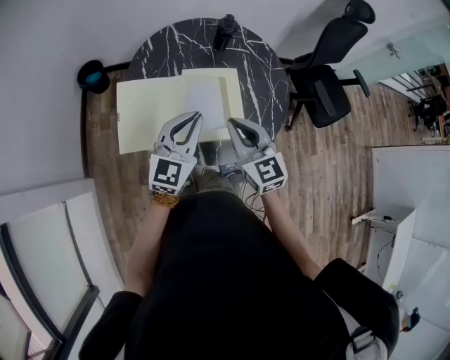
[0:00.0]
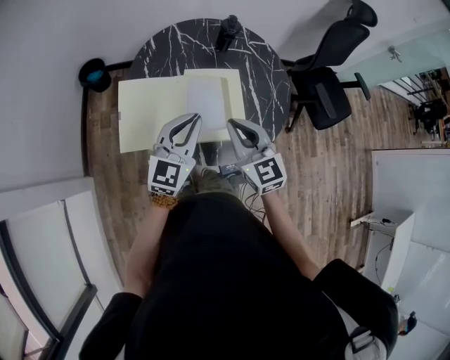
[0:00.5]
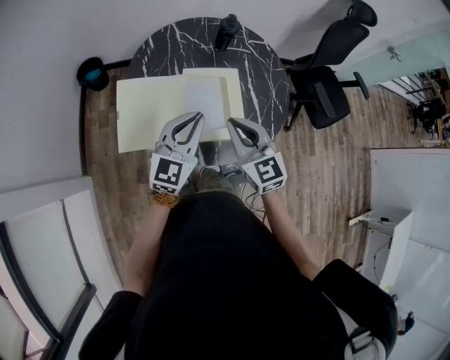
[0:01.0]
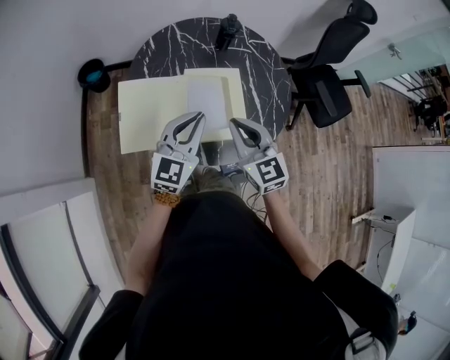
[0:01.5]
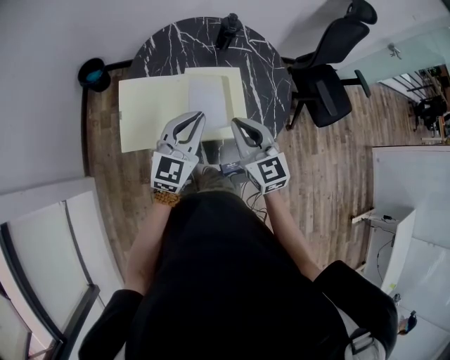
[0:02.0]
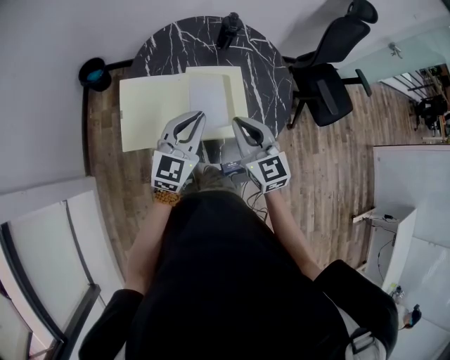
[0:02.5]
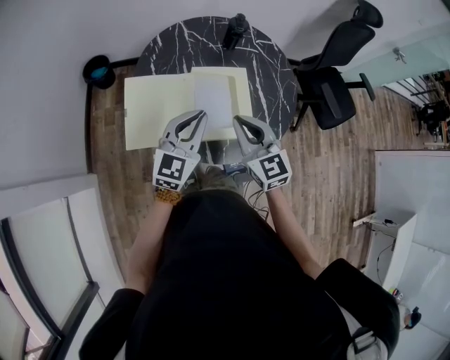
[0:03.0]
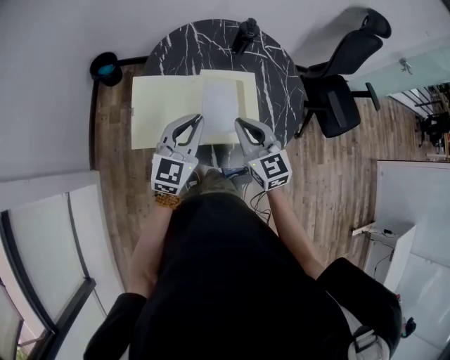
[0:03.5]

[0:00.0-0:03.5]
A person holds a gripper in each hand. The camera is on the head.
0:00.0 to 0:02.0: Neither gripper changes place.
0:02.0 to 0:03.5: There are only small adjustments of the grippers.

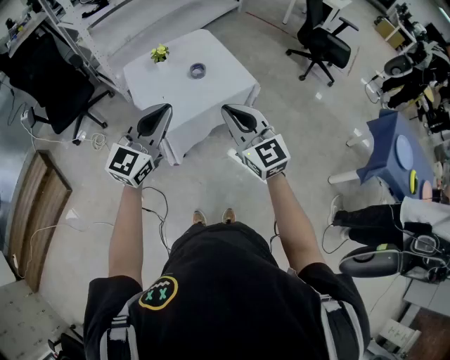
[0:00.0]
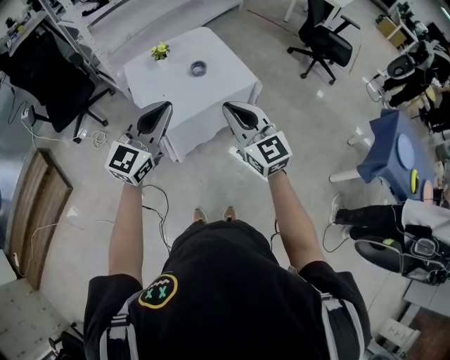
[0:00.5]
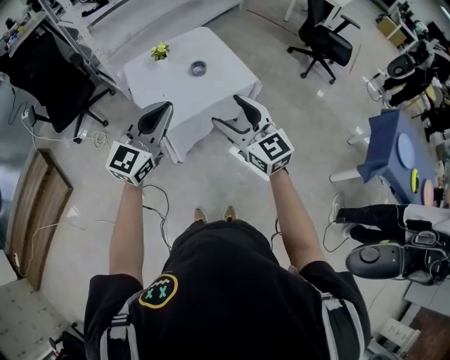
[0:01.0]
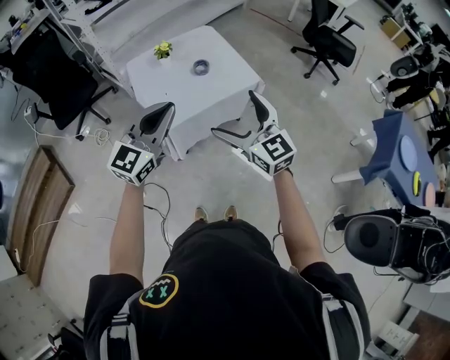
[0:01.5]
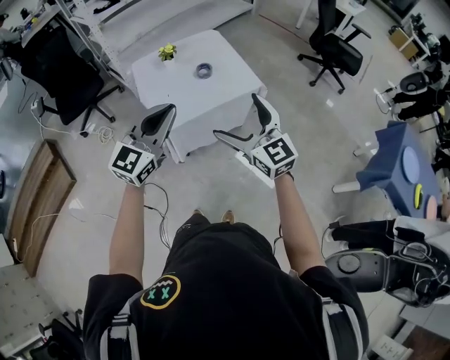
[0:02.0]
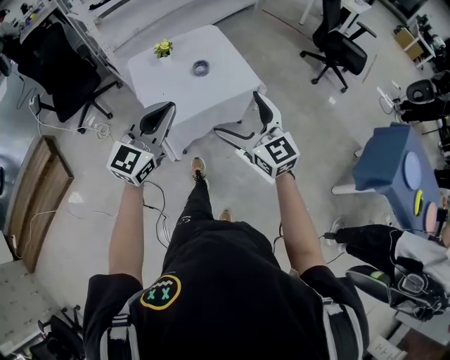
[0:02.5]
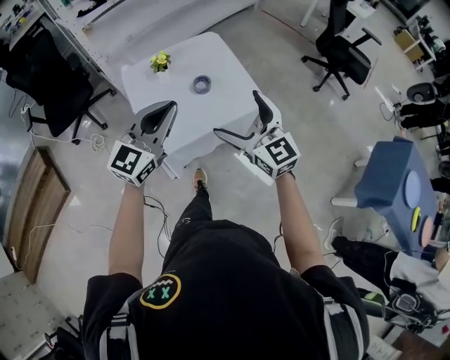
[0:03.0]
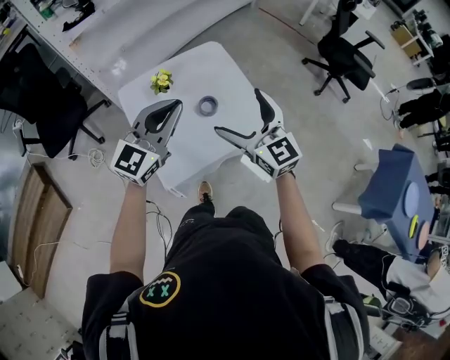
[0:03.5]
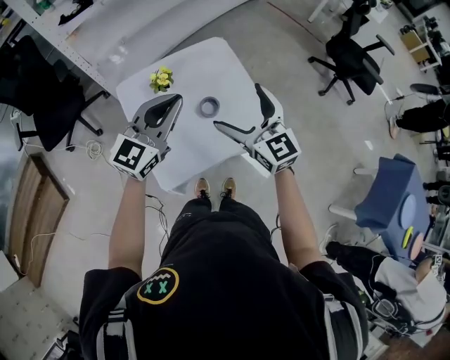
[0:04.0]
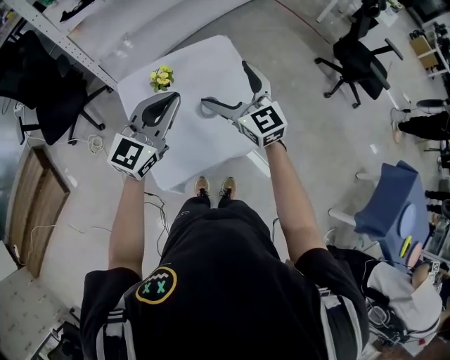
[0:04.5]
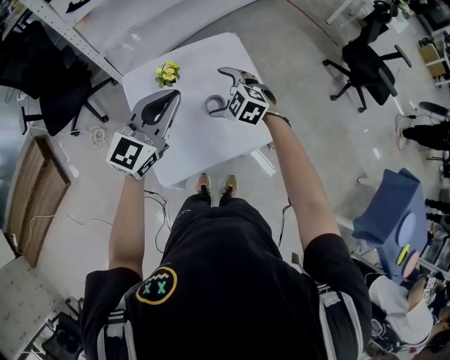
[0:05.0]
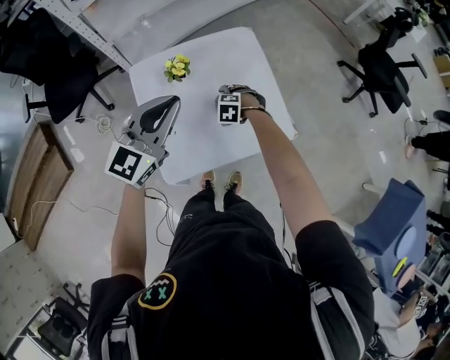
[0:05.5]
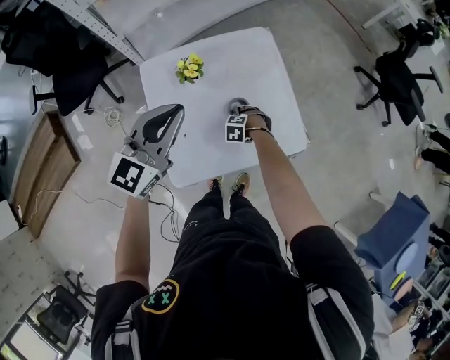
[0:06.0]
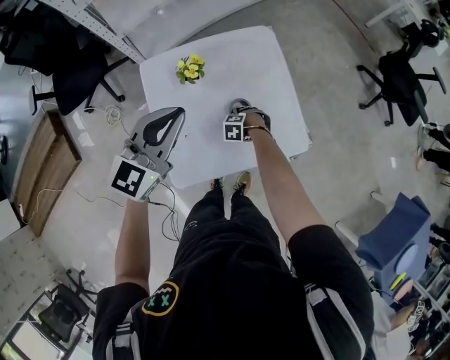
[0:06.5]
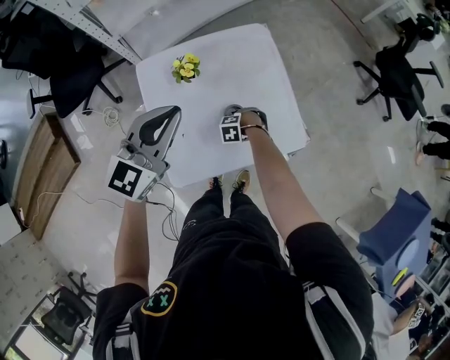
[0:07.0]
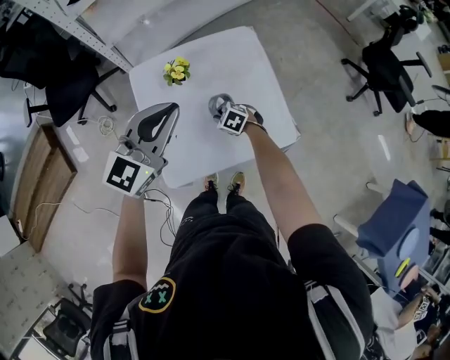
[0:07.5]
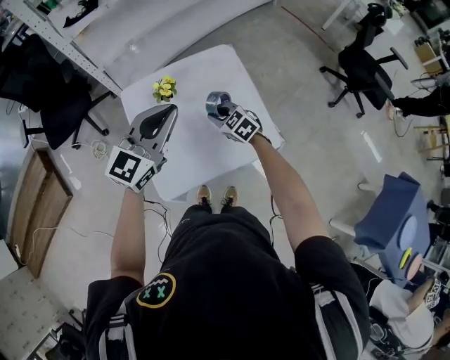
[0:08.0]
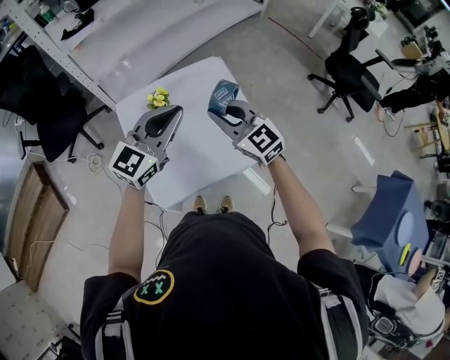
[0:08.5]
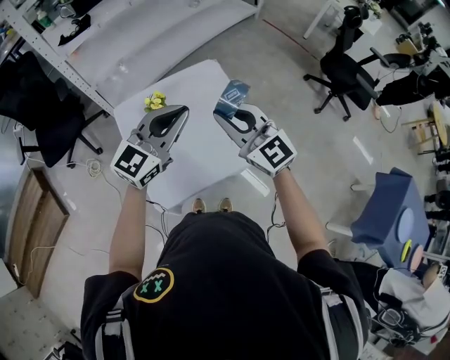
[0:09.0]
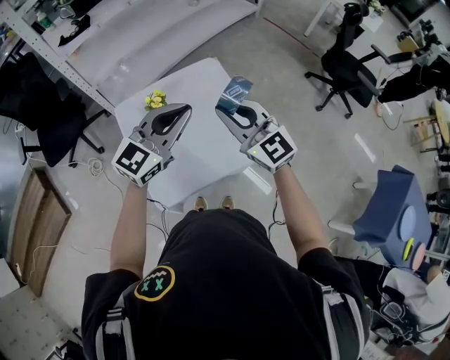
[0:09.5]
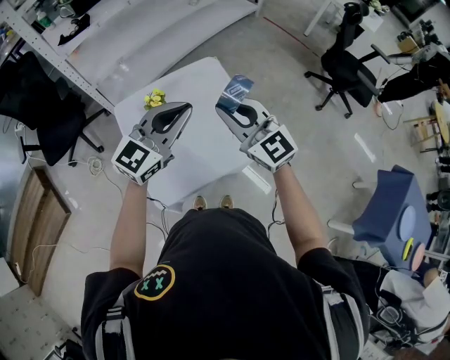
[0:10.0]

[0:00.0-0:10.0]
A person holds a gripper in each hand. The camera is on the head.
0:00.0 to 0:02.0: The right gripper opens up.
0:02.0 to 0:04.0: Both grippers are carried forward, about 40 cm.
0:04.0 to 0:06.0: The left gripper moves roughly 10 cm, while the right gripper goes roughly 40 cm downward, and tips its fingers downward by about 80 degrees.
0:06.0 to 0:08.0: The right gripper is displaced upward by approximately 20 cm, tips its fingers upward by approximately 40 degrees, and closes its fingers. The left gripper moves approximately 5 cm.
0:08.0 to 0:10.0: The right gripper goes approximately 30 cm upward, and tips its fingers upward by some 40 degrees. The left gripper is displaced to the right by about 5 cm.

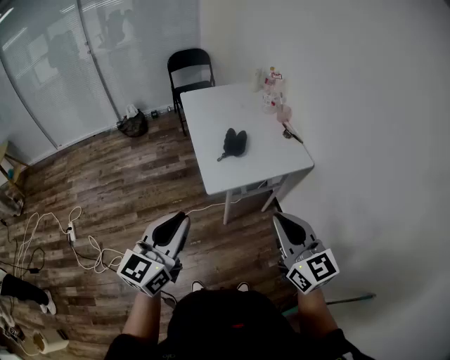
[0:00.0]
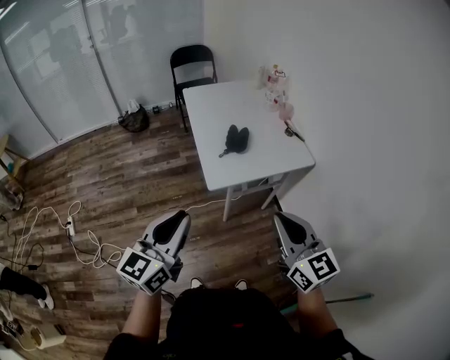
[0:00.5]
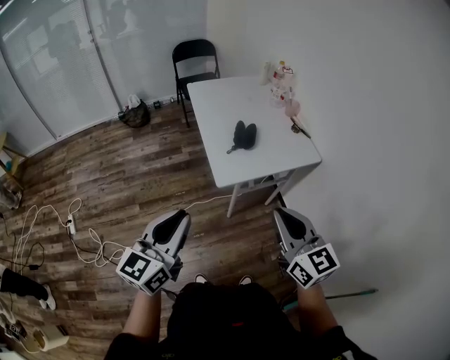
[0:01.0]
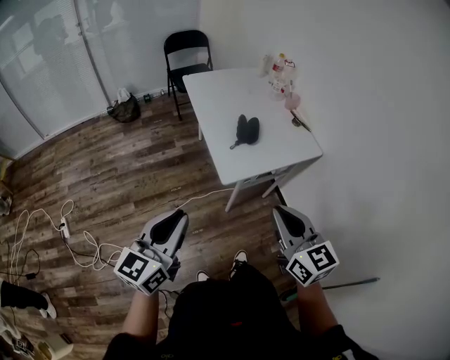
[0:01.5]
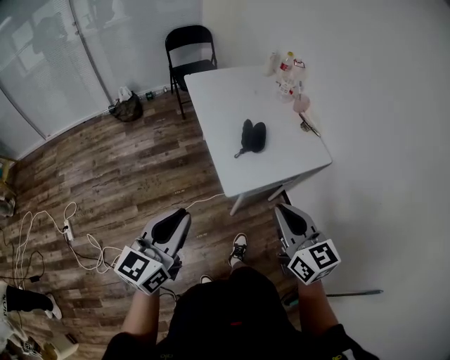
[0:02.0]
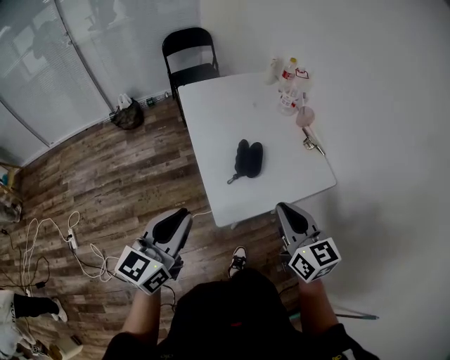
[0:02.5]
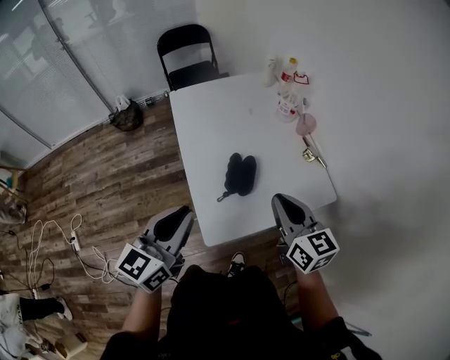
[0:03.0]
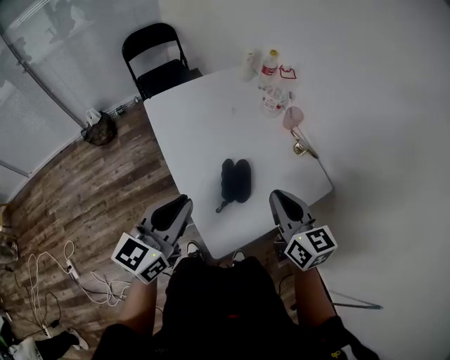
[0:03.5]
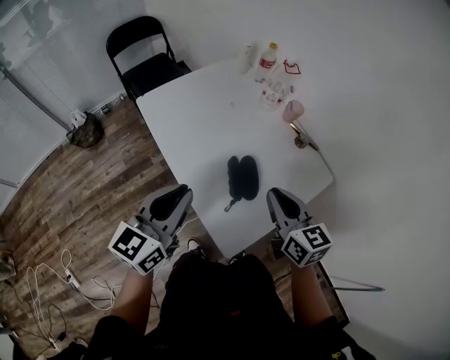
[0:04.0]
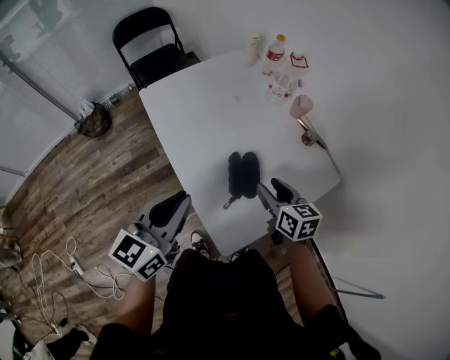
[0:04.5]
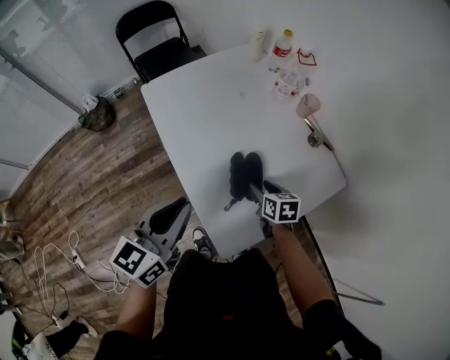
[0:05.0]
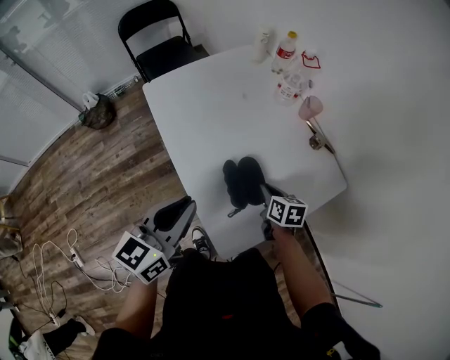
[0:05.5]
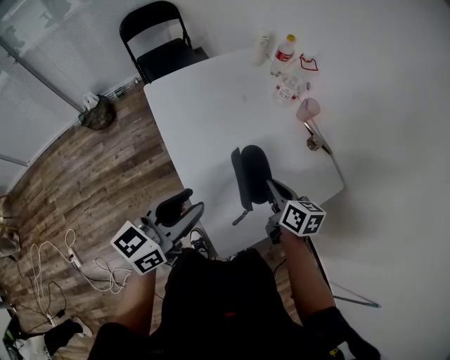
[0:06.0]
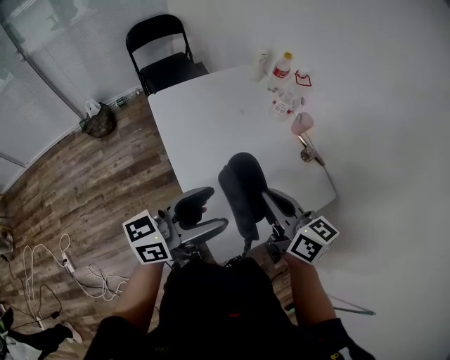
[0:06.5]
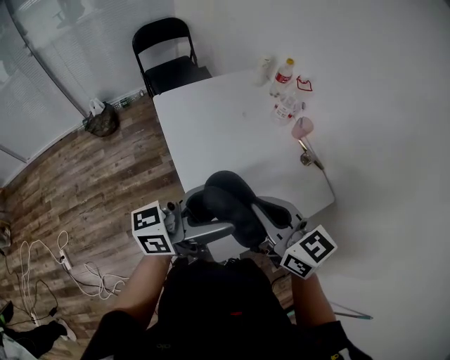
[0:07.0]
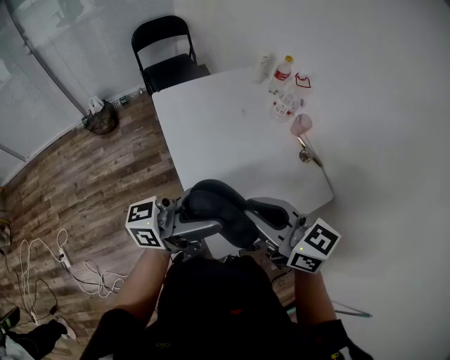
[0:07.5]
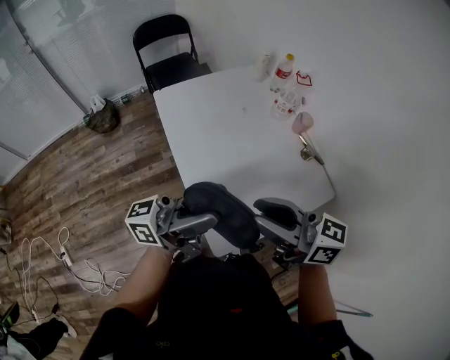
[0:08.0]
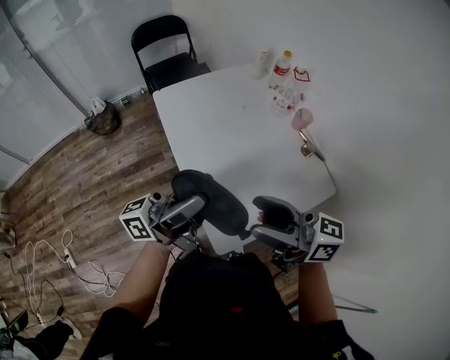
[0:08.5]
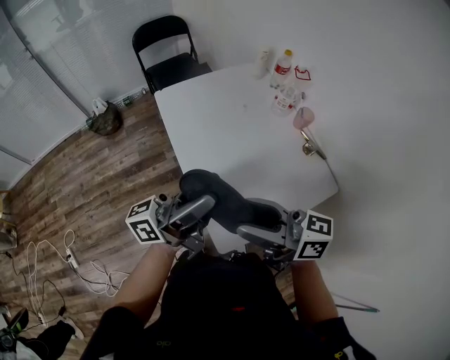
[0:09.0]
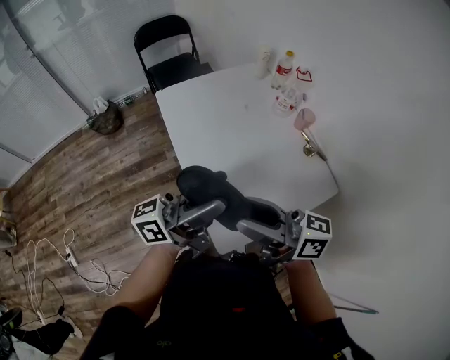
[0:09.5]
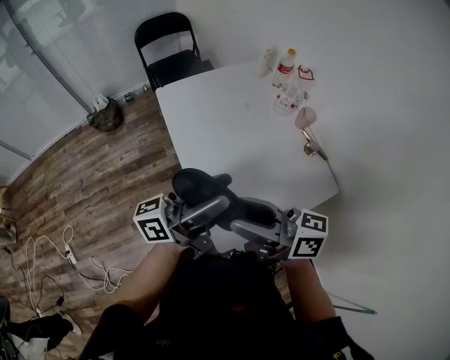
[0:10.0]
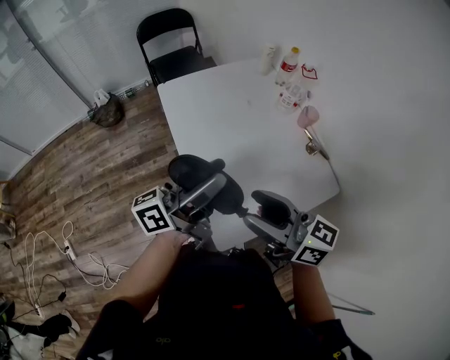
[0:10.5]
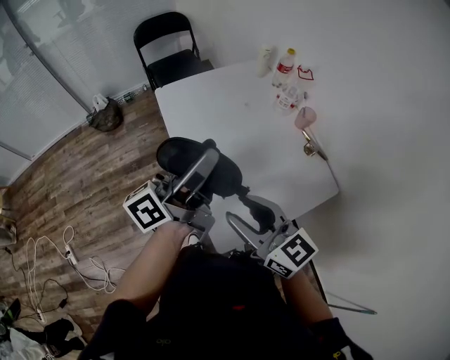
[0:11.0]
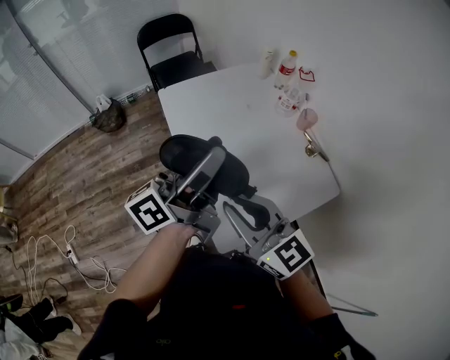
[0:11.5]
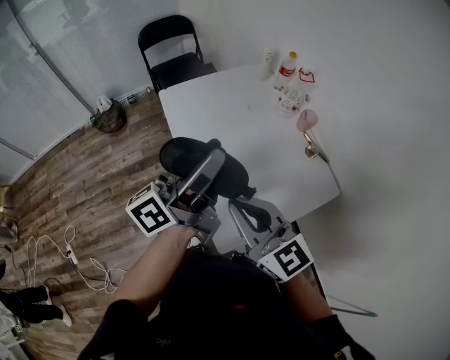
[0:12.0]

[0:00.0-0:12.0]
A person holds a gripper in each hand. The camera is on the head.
0:00.0 to 0:02.0: The left gripper moves forward and to the left, roughly 15 cm, while the right gripper goes approximately 15 cm forward, to the left and downward.
0:02.0 to 0:04.0: The two grippers go roughly 35 cm forward.
0:04.0 to 0:06.0: The left gripper changes place by some 5 cm. The right gripper shifts approximately 15 cm downward and forward, changes its angle by some 20 degrees, and opens and closes again.
0:06.0 to 0:08.0: The left gripper shifts roughly 10 cm upward, and tips its fingers upward by about 40 degrees. The right gripper goes some 25 cm upward, tips its fingers upward by approximately 30 degrees, and opens its fingers.
0:08.0 to 0:10.0: The right gripper moves some 5 cm, and opens.
0:10.0 to 0:12.0: The right gripper rotates around the line of its fingers by roughly 40 degrees, counterclockwise from behind, and closes its fingers. Meanwhile the left gripper travels forward by some 5 cm.

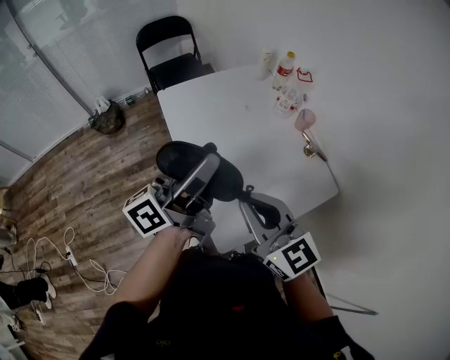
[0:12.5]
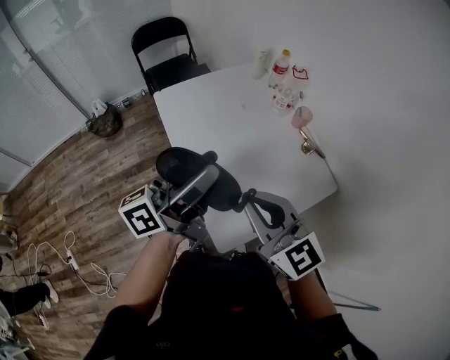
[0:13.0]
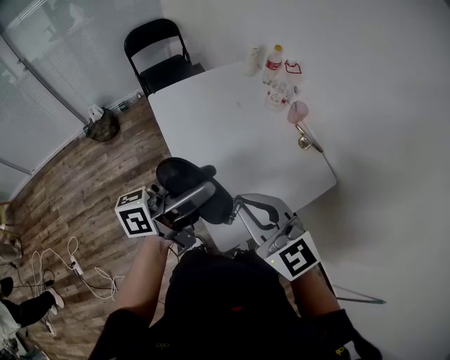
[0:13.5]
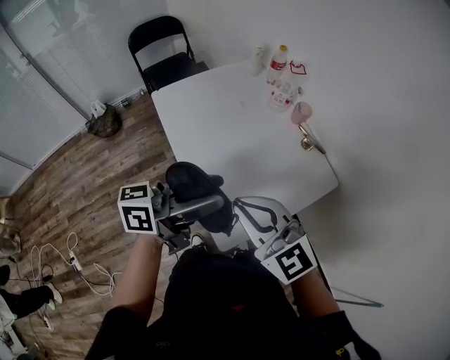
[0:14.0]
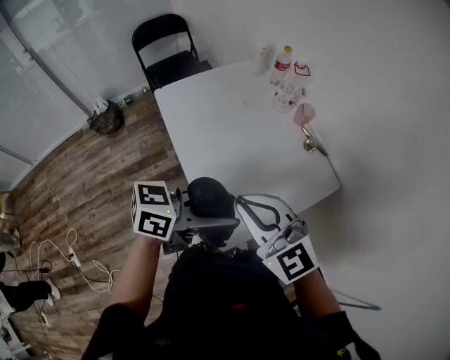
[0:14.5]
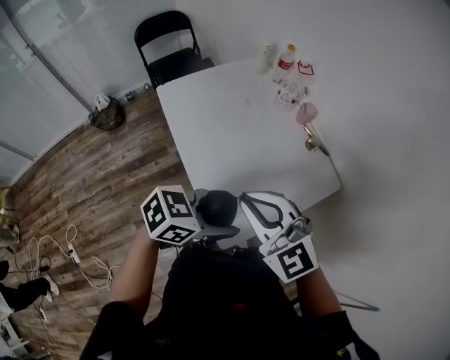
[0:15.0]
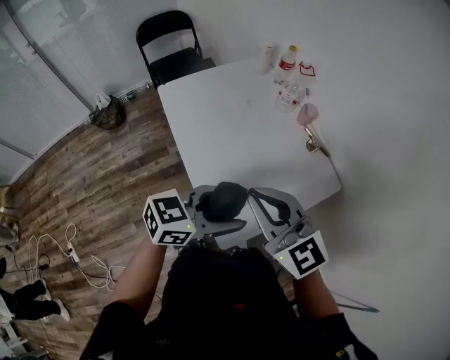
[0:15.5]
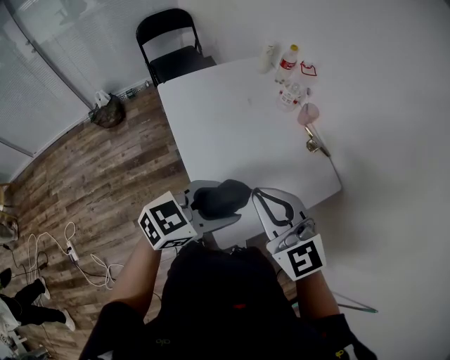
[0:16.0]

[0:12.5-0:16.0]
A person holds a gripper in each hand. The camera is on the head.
0:12.5 to 0:14.5: The right gripper changes its angle by roughly 20 degrees. The left gripper shifts by some 15 cm, and swivels roughly 50 degrees.
0:14.5 to 0:16.0: The left gripper changes its angle by about 30 degrees.
